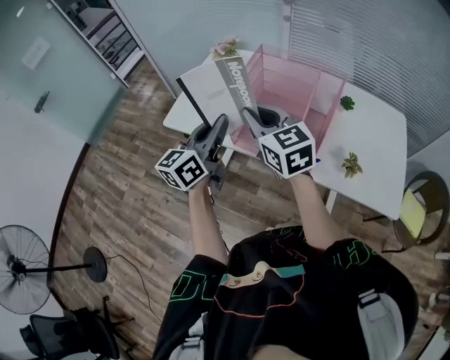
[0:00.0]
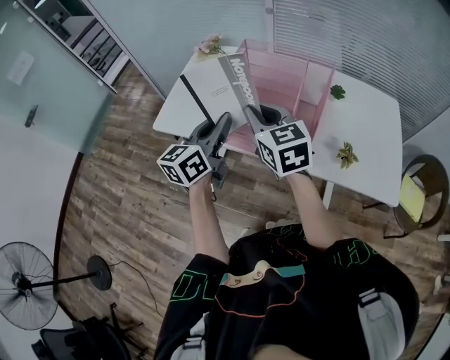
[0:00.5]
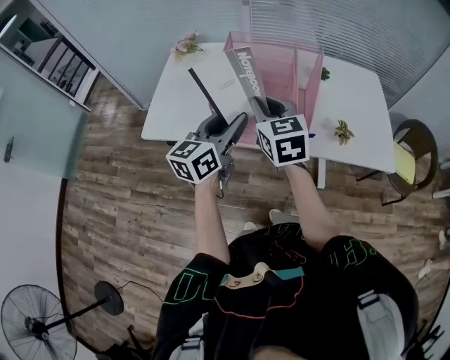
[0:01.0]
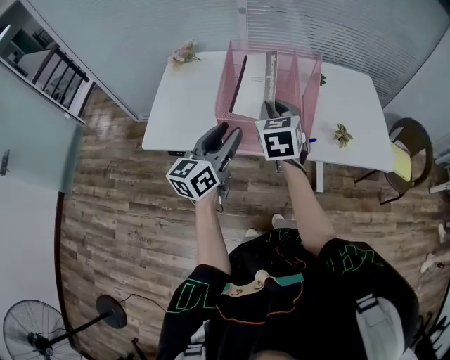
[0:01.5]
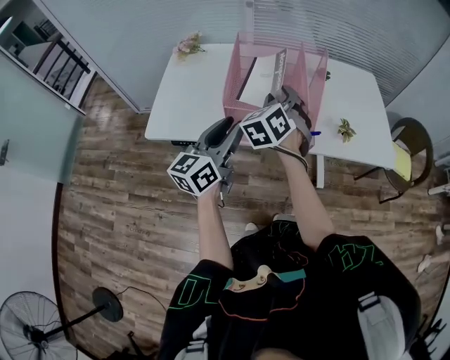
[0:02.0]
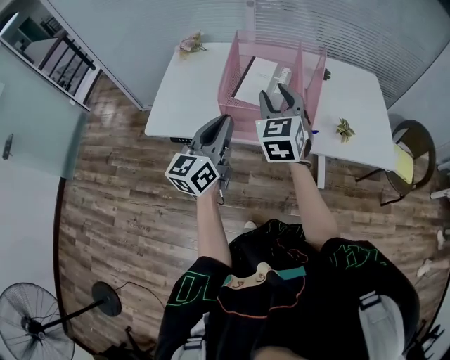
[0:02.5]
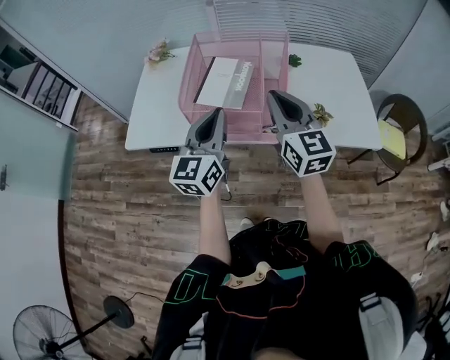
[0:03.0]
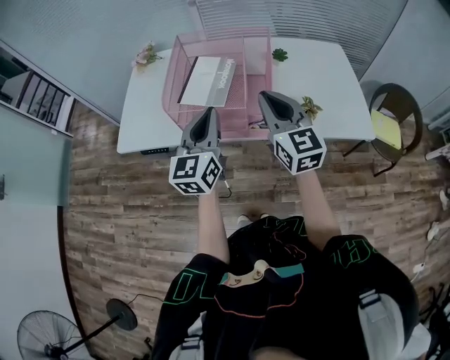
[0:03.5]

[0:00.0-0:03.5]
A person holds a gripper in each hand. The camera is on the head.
0:00.0 to 0:02.0: The right gripper moves roughly 10 cm, swivels approximately 70 degrees, and opens. Meanwhile the left gripper opens.
0:02.0 to 0:03.5: The left gripper heads to the right, covering approximately 10 cm, changes its angle by some 20 degrees, and closes up. The right gripper moves to the right and backward, about 15 cm, rotates some 50 degrees, and closes its fingers.

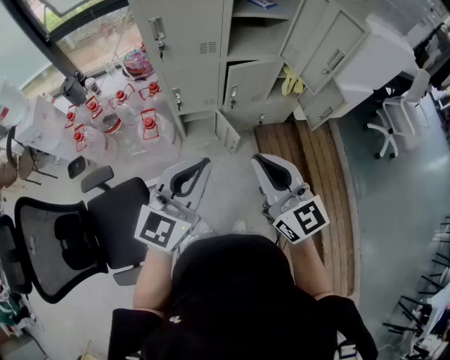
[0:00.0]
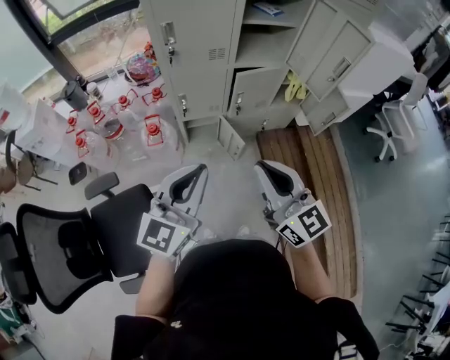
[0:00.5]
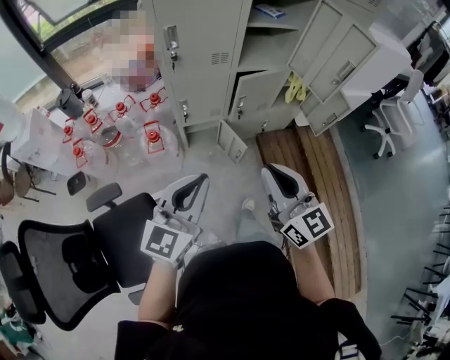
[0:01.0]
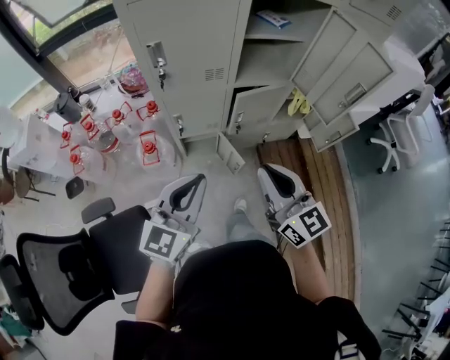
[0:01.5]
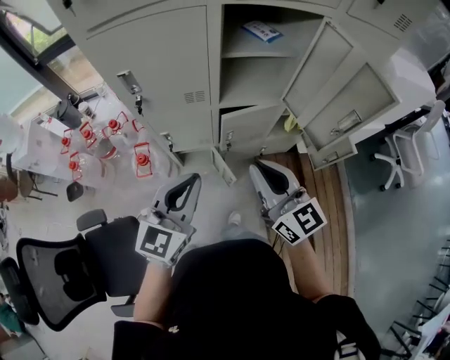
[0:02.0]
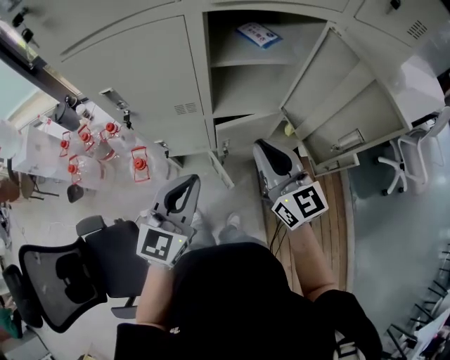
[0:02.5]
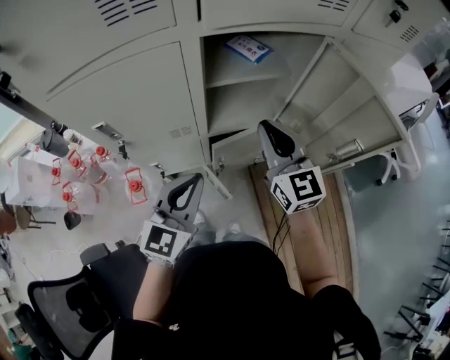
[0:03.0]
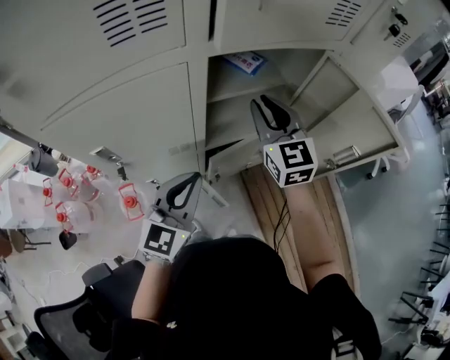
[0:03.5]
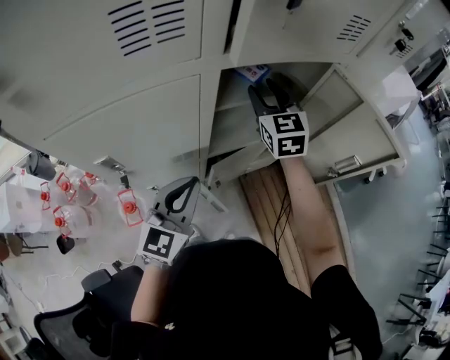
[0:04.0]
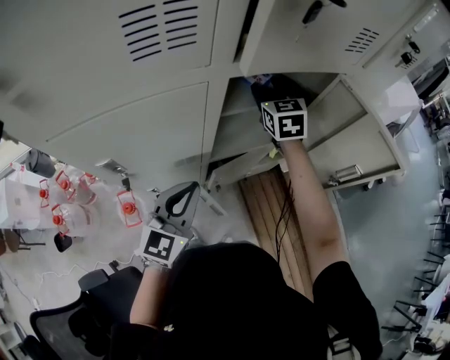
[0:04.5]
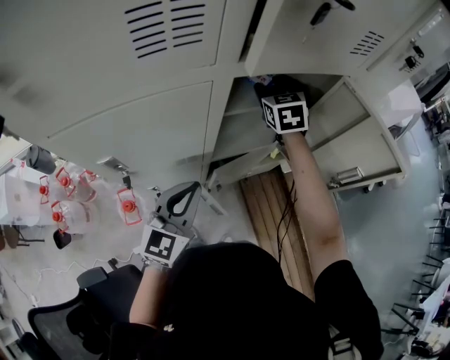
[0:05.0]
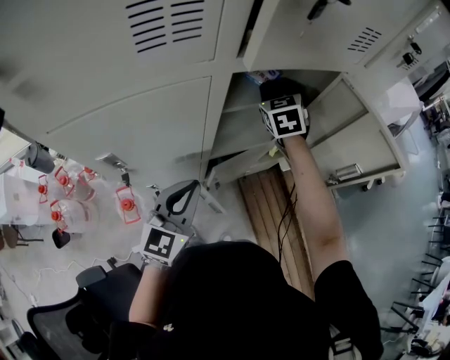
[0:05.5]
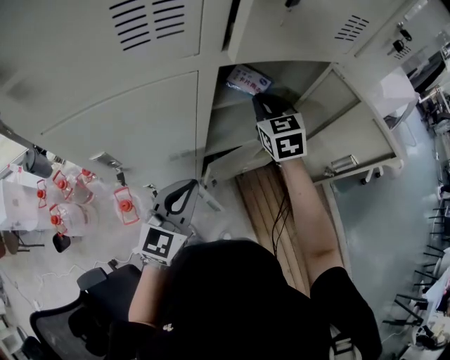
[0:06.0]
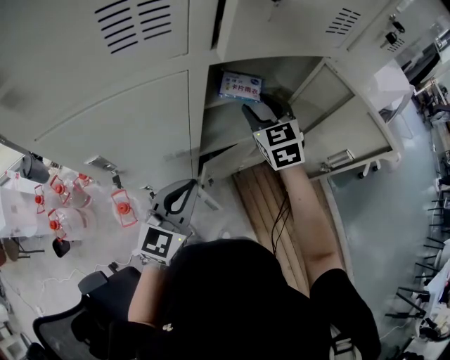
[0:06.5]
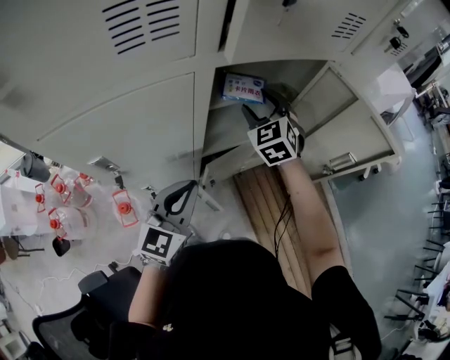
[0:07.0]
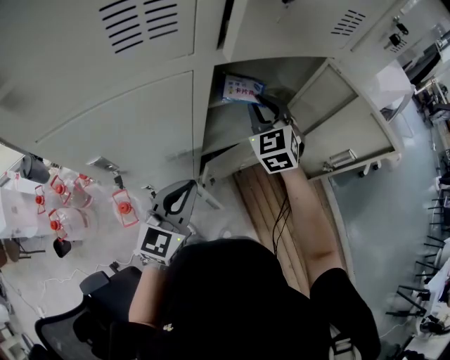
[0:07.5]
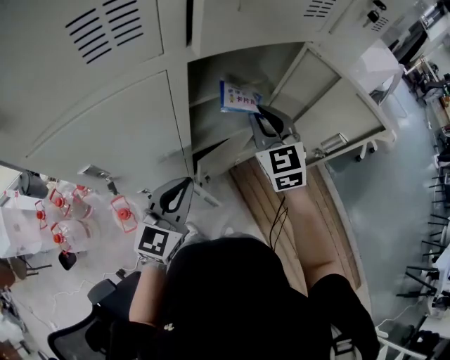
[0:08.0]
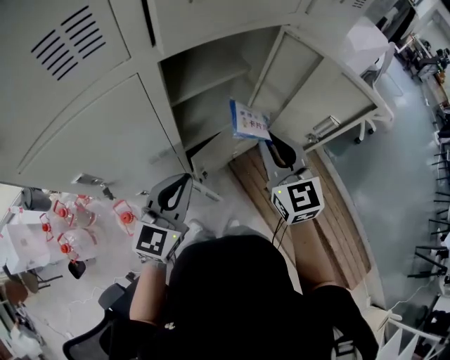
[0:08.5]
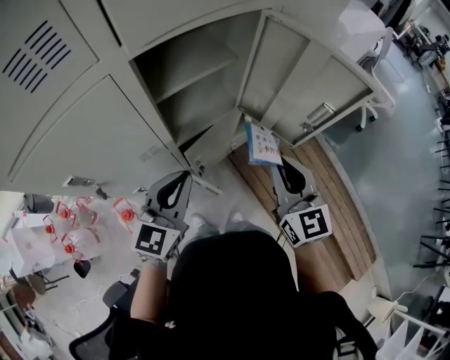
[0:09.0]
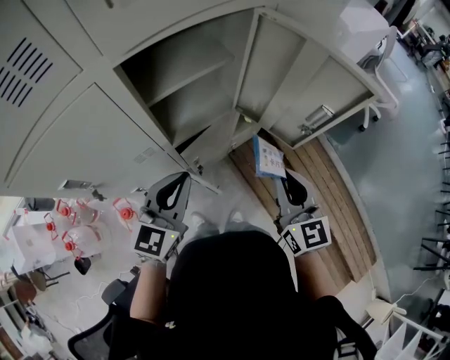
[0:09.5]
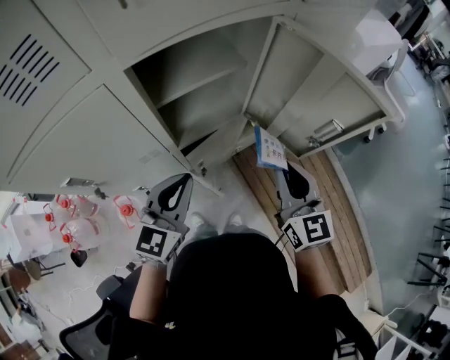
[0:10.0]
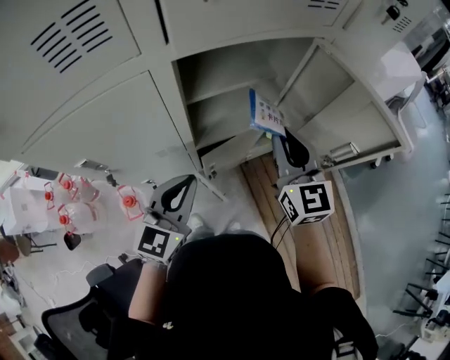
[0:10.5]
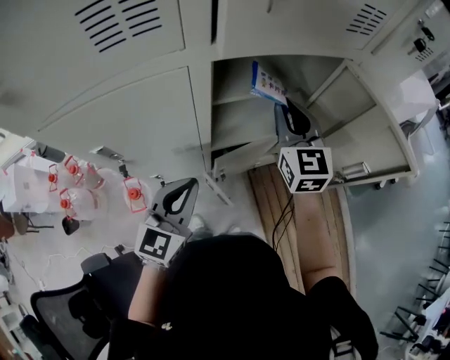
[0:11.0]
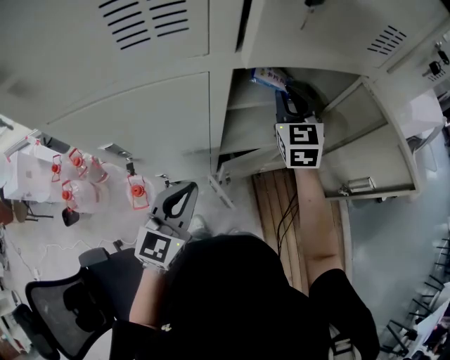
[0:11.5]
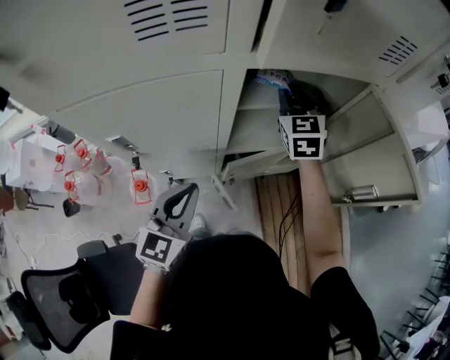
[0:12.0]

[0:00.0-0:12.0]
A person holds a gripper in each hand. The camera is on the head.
0:00.0 to 0:02.0: Both grippers move forward, some 25 cm.
0:02.0 to 0:04.0: The left gripper shifts some 20 cm forward; the right gripper goes about 35 cm forward, changes its angle by approximately 40 degrees, and opens up.
0:04.0 to 0:06.0: The right gripper travels forward and back again, approximately 5 cm each way, and closes.
0:06.0 to 0:08.0: The right gripper goes some 5 cm backward, and opens, then closes again.
0:08.0 to 0:10.0: The right gripper heads to the right and backward, covering some 20 cm, and swivels approximately 30 degrees, while the left gripper goes approximately 5 cm to the right.
0:10.0 to 0:12.0: The right gripper shifts roughly 30 cm forward and to the left, and rotates some 30 degrees; the left gripper heads to the left, covering some 10 cm, and changes its angle by approximately 20 degrees.

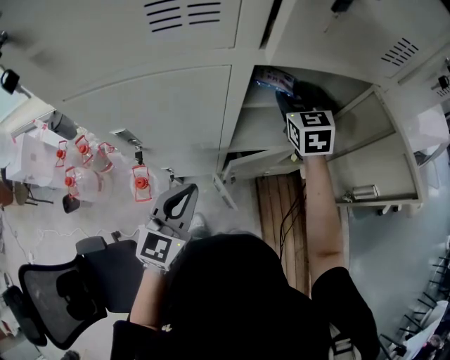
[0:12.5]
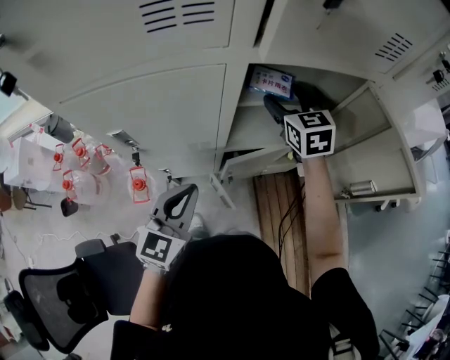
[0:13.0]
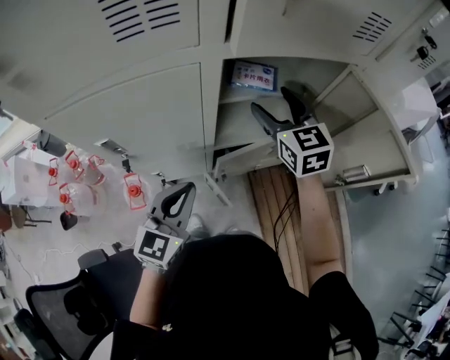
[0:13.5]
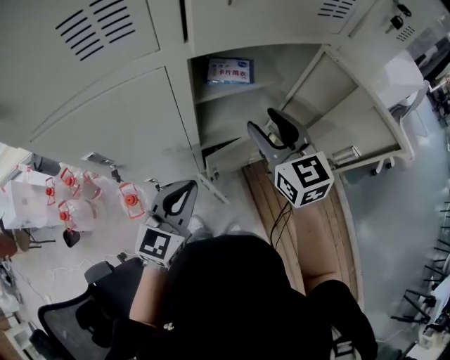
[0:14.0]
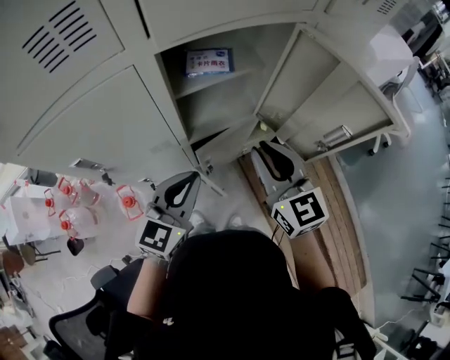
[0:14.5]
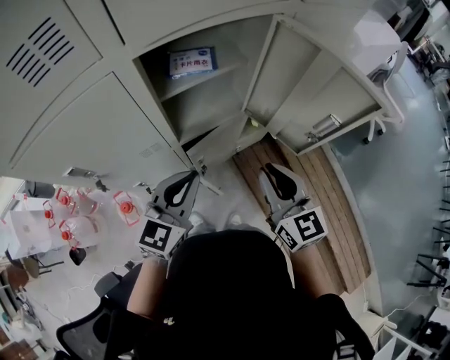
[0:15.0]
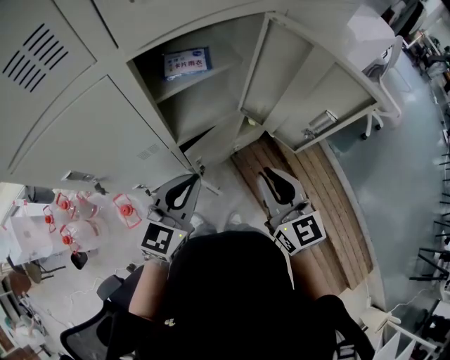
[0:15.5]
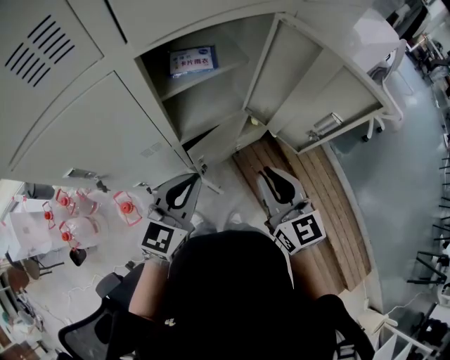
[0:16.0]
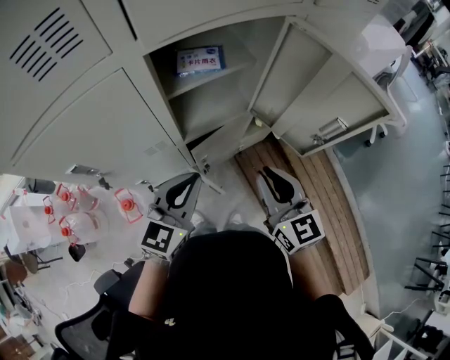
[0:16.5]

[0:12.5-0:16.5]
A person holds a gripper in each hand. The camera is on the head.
0:12.5 to 0:14.5: The left gripper shifts about 10 cm to the right, and swivels roughly 20 degrees. The right gripper goes about 25 cm backward, and closes.
0:14.5 to 0:16.5: The right gripper heads backward, covering some 5 cm.

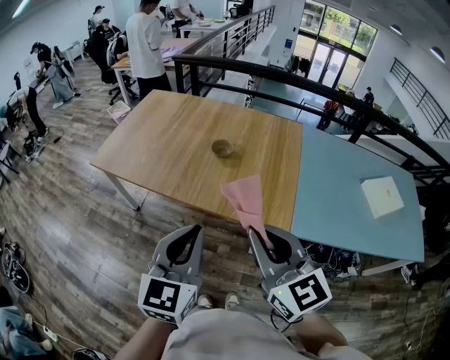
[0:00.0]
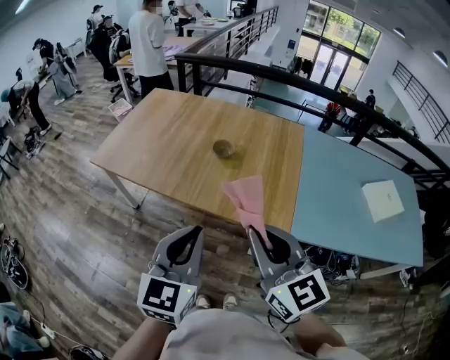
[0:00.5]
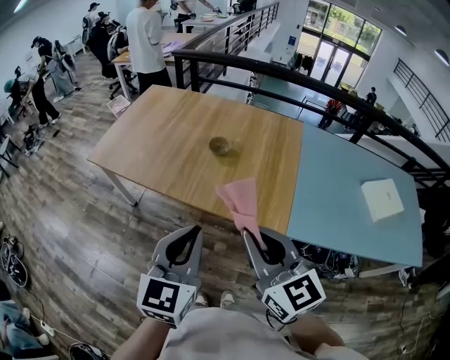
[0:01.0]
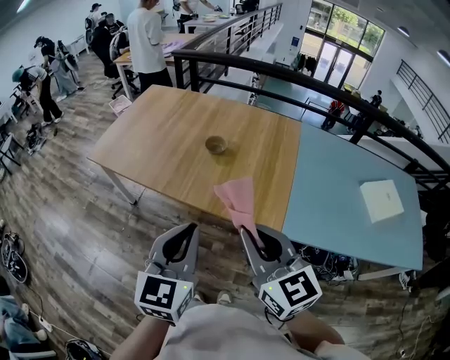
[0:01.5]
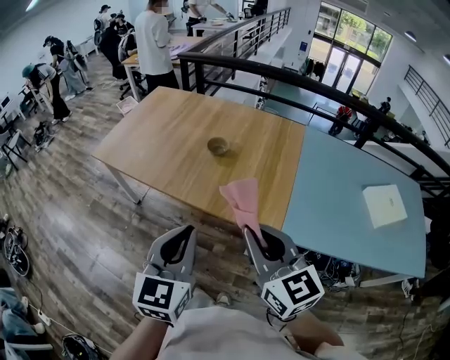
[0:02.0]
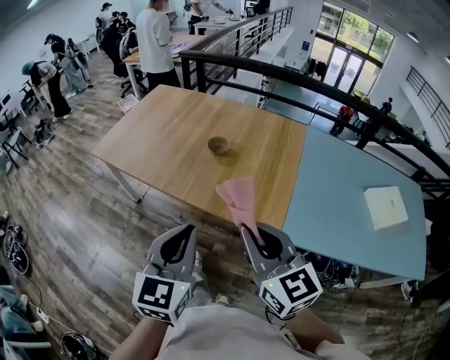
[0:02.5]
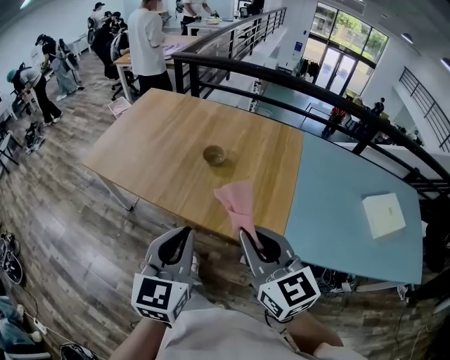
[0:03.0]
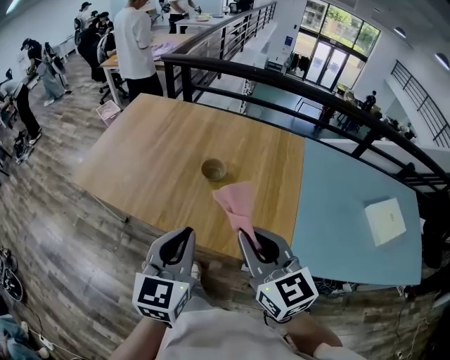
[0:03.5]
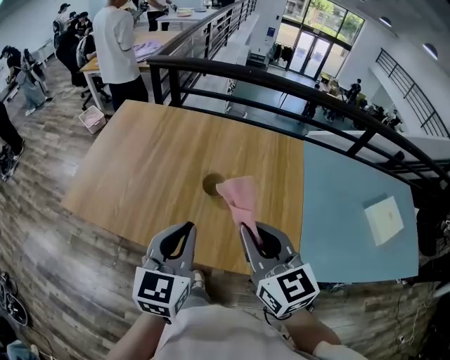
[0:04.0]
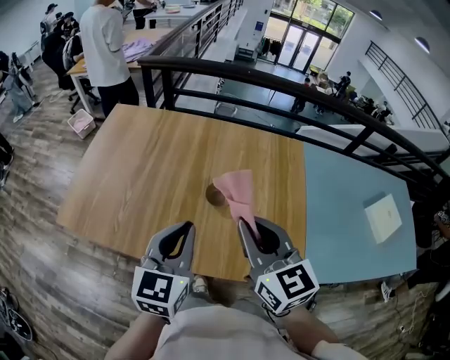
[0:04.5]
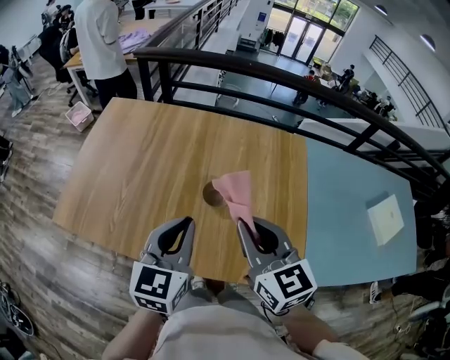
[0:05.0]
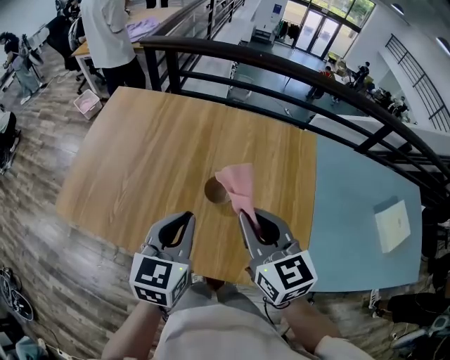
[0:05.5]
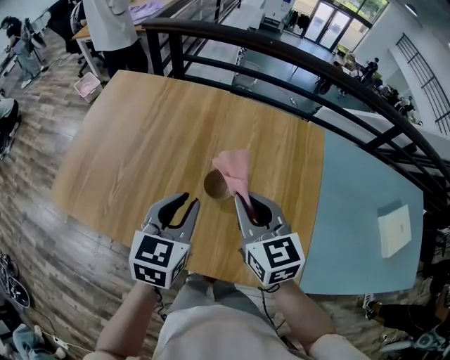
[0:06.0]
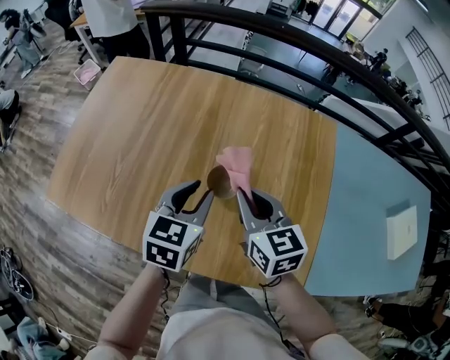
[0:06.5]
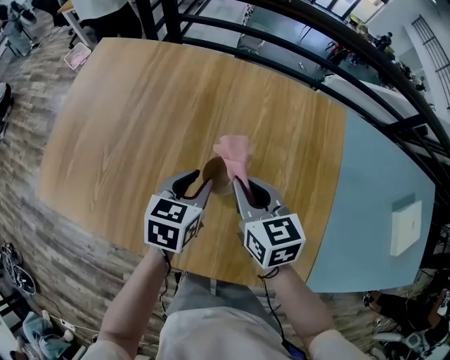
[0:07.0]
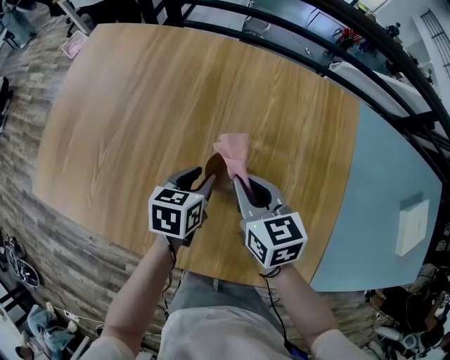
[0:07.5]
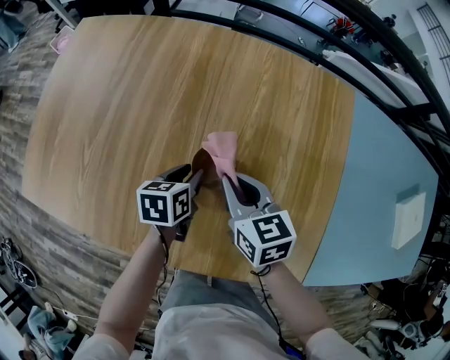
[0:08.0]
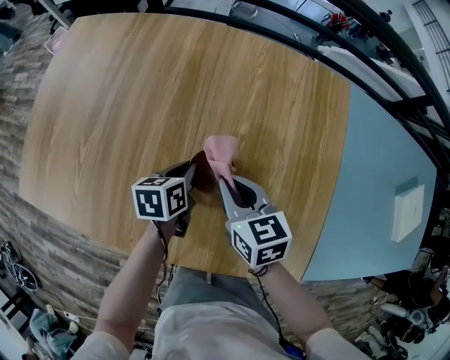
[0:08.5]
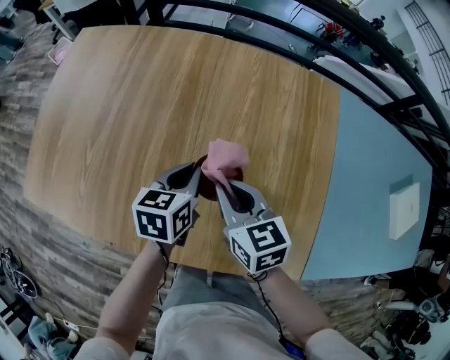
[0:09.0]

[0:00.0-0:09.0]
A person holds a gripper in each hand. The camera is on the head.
0:00.0 to 0:02.0: Both grippers travel together to the right, some 10 cm.
0:02.0 to 0:04.5: Both grippers are carried forward, some 40 cm.
0:04.5 to 0:07.0: The grippers both shift downward and forward by about 35 cm. The left gripper rotates approximately 30 degrees, and opens; the right gripper changes its angle by about 20 degrees.
0:07.0 to 0:09.0: The left gripper goes downward and returns, about 15 cm each way, and closes its fingers.
